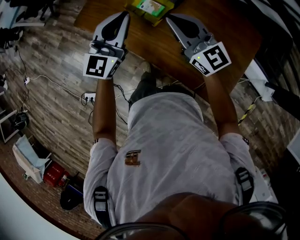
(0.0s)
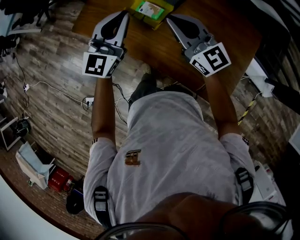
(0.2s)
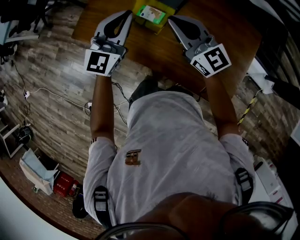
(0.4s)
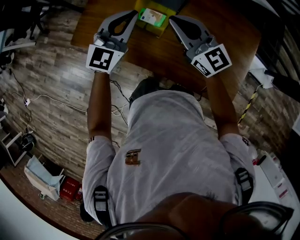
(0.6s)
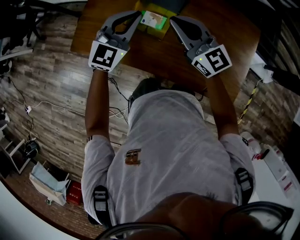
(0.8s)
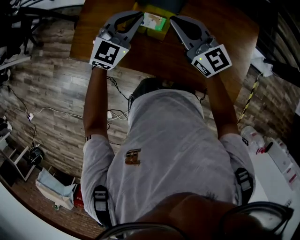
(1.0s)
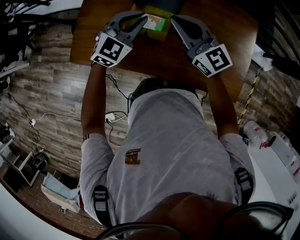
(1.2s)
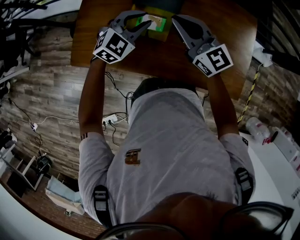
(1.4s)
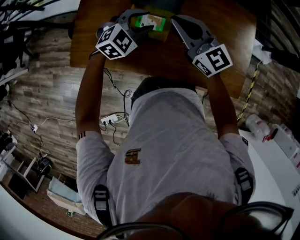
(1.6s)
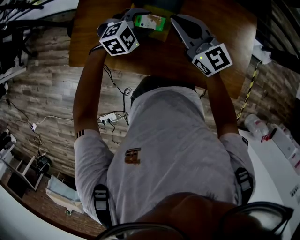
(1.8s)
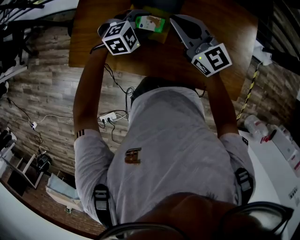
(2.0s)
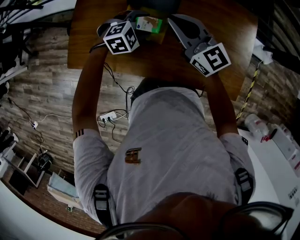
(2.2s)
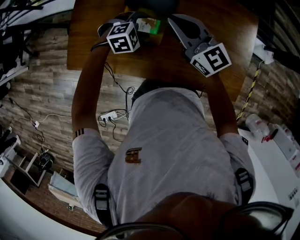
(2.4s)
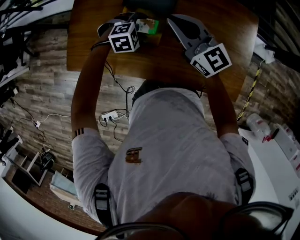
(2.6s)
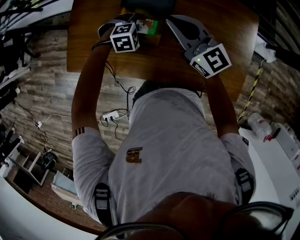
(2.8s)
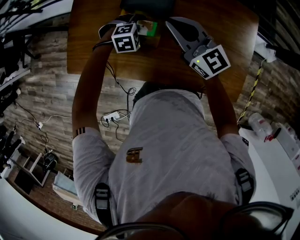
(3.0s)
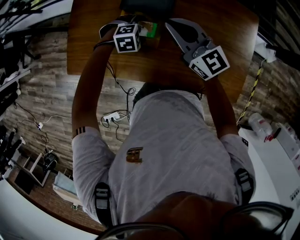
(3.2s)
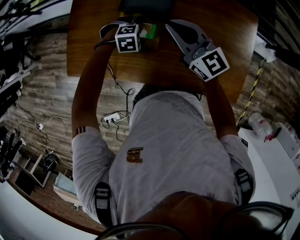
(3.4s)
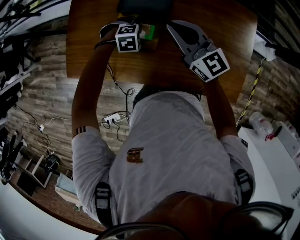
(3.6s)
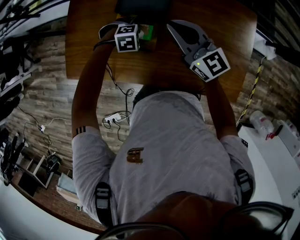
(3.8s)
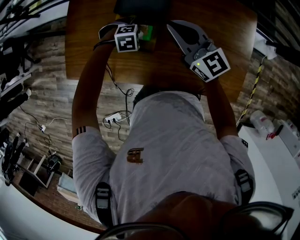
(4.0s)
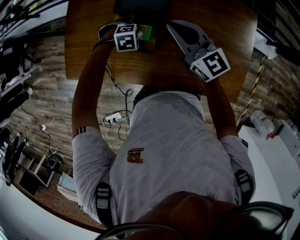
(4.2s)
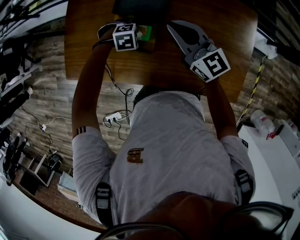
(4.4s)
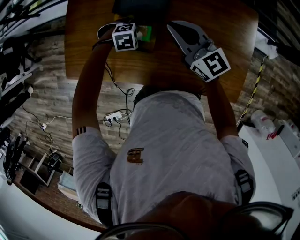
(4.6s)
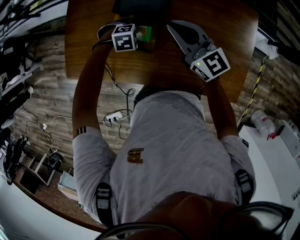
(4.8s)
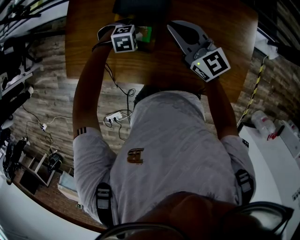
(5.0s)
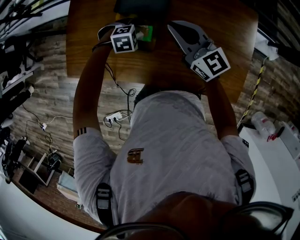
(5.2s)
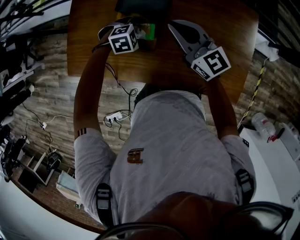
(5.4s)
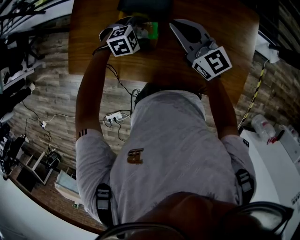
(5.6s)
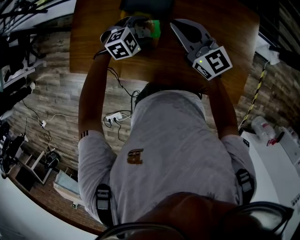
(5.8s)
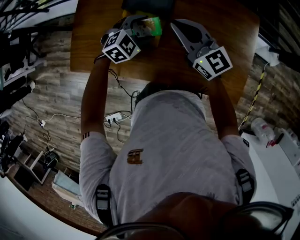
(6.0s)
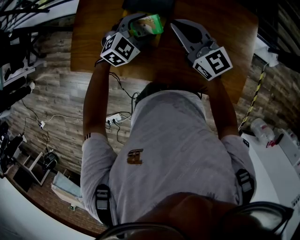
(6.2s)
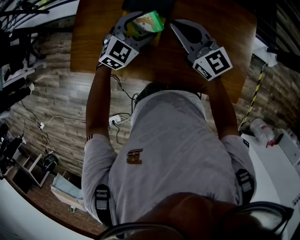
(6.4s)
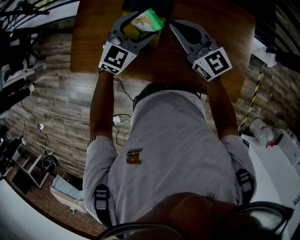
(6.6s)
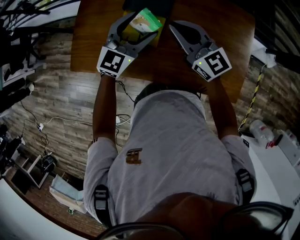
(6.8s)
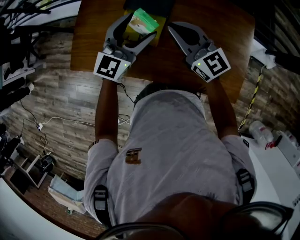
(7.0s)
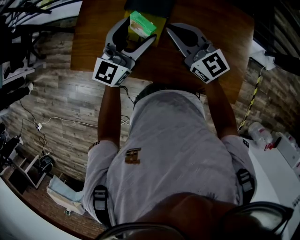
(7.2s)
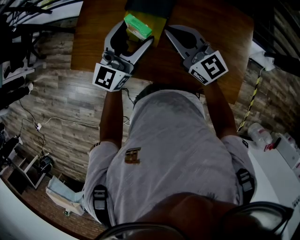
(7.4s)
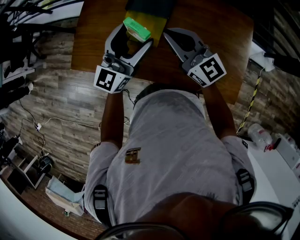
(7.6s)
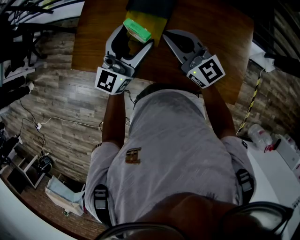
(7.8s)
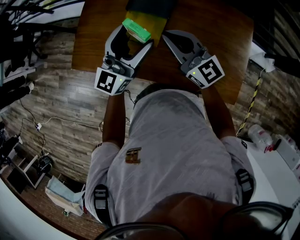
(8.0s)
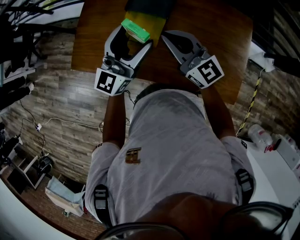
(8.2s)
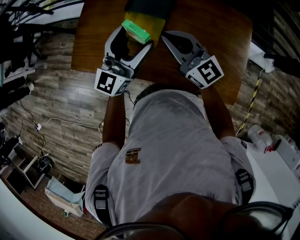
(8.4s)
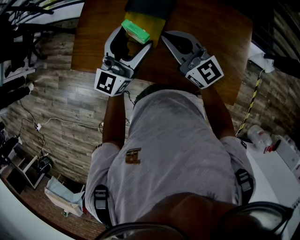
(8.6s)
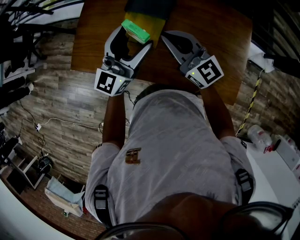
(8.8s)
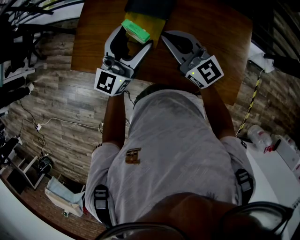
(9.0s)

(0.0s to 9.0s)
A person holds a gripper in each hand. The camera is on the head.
0.0s - 1.6s: The left gripper ends up about 25 cm from where it was, points its fingers about 40 degrees further downward, and opens its fingers, while the right gripper moves about 20 cm, and turns by roughly 20 degrees.
1.6s - 3.0s: The right gripper shifts some 5 cm forward; the left gripper shifts roughly 15 cm downward, rotates some 30 degrees, and opens.
3.0s - 4.4s: The right gripper ends up some 5 cm from where it was.
4.4s - 6.0s: The left gripper travels upward by roughly 10 cm, and rotates about 40 degrees. Meanwhile the right gripper moves roughly 5 cm.
6.0s - 7.6s: The right gripper moves backward, about 10 cm. The left gripper travels upward and backward by about 20 cm, and tilts its fingers some 60 degrees upward.
7.6s - 9.0s: There are only small adjustments of the grippers.

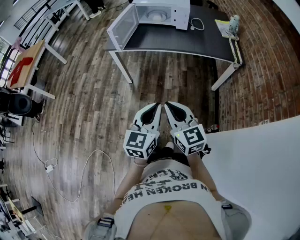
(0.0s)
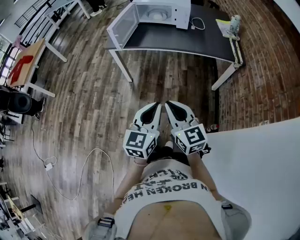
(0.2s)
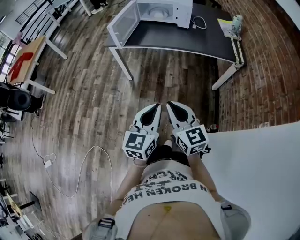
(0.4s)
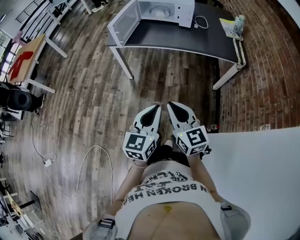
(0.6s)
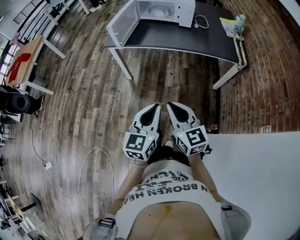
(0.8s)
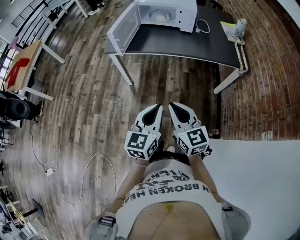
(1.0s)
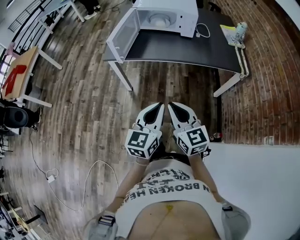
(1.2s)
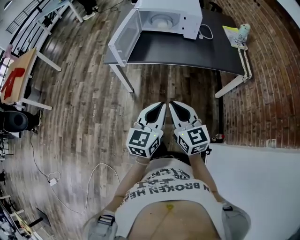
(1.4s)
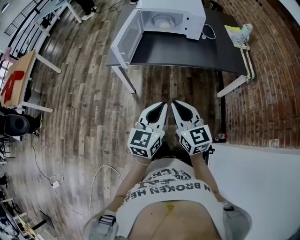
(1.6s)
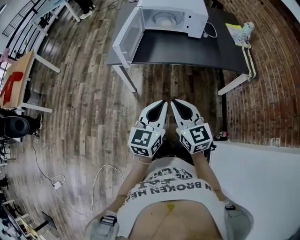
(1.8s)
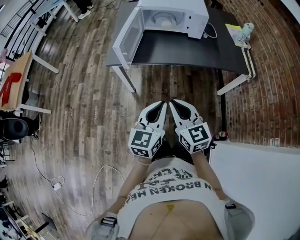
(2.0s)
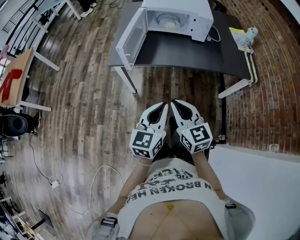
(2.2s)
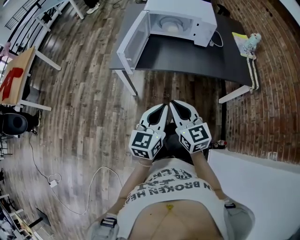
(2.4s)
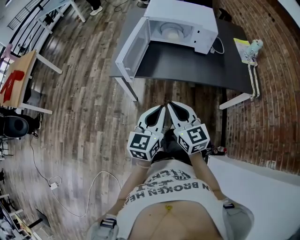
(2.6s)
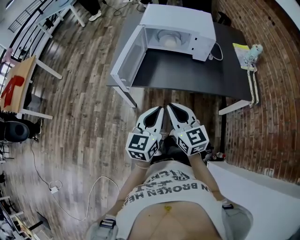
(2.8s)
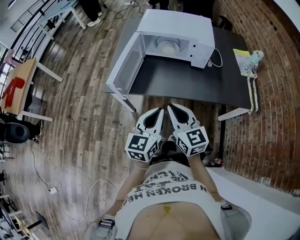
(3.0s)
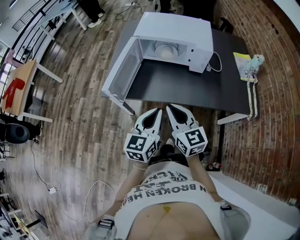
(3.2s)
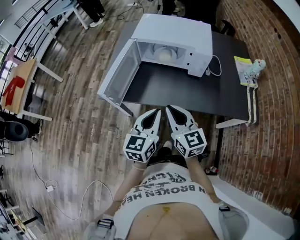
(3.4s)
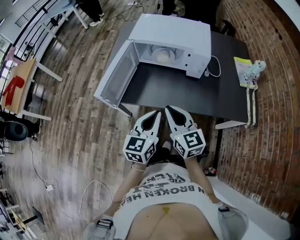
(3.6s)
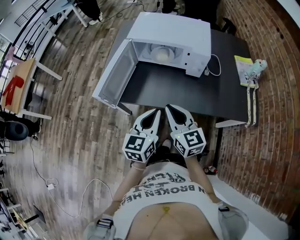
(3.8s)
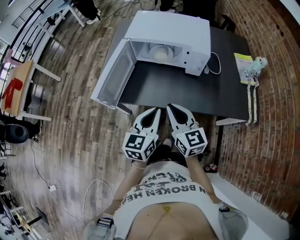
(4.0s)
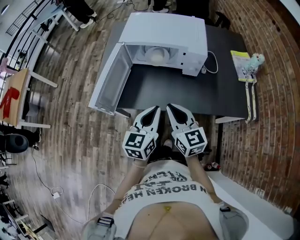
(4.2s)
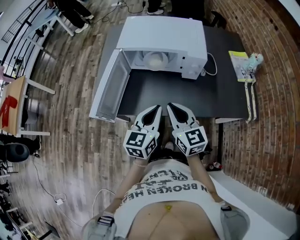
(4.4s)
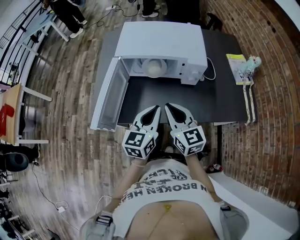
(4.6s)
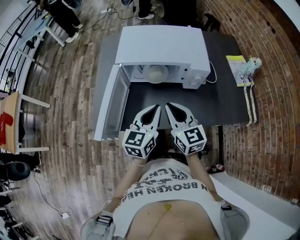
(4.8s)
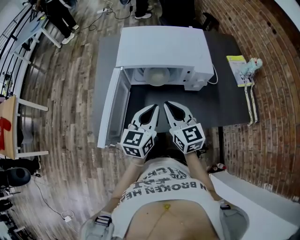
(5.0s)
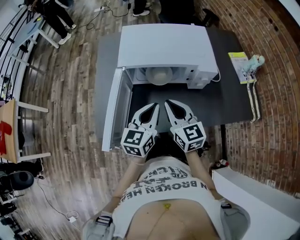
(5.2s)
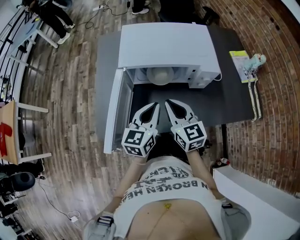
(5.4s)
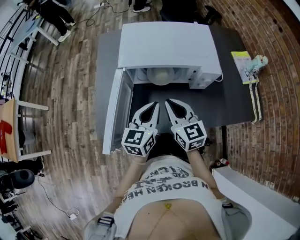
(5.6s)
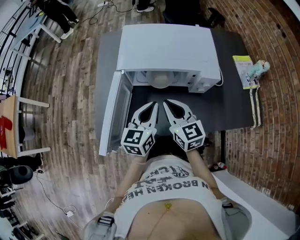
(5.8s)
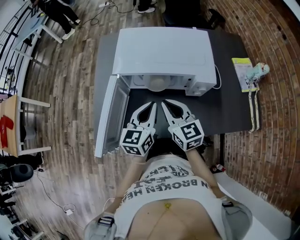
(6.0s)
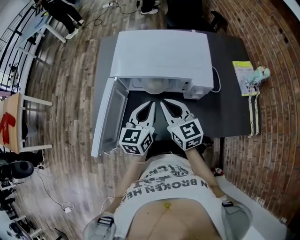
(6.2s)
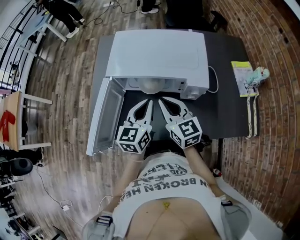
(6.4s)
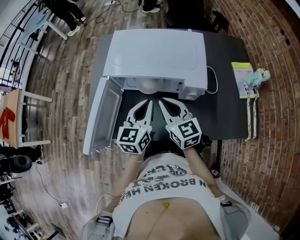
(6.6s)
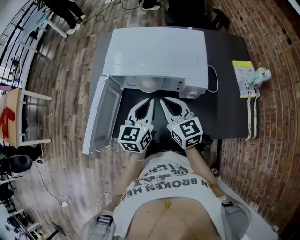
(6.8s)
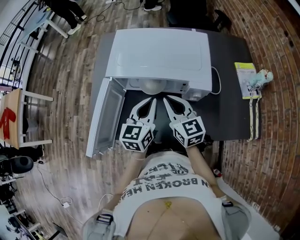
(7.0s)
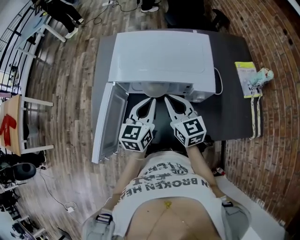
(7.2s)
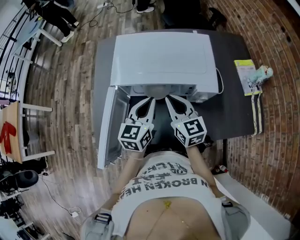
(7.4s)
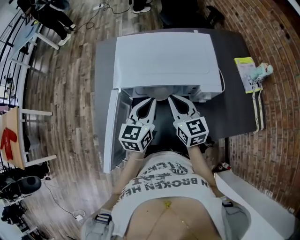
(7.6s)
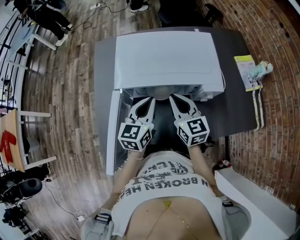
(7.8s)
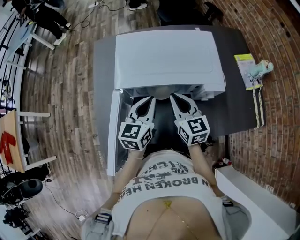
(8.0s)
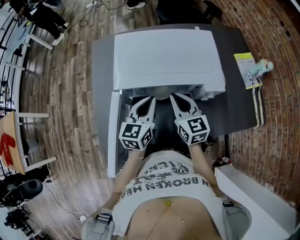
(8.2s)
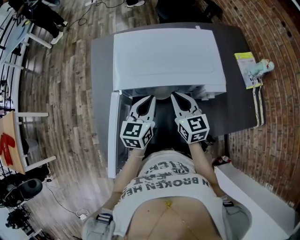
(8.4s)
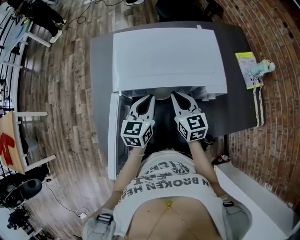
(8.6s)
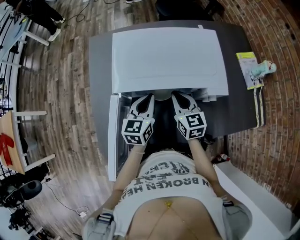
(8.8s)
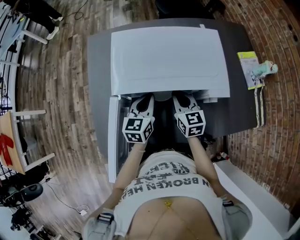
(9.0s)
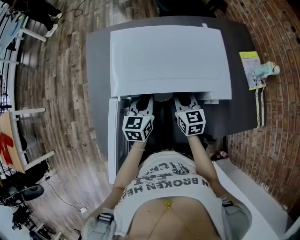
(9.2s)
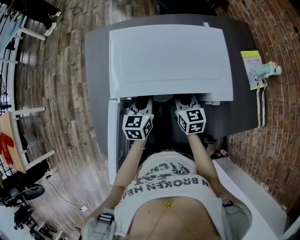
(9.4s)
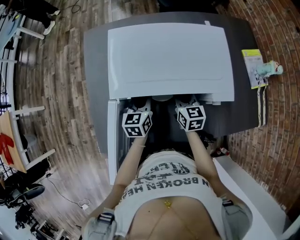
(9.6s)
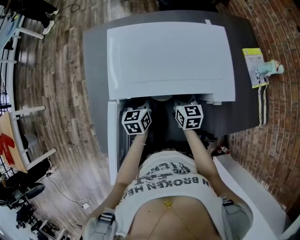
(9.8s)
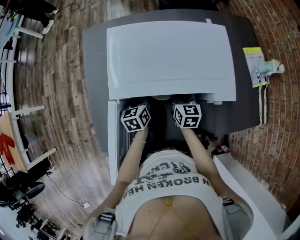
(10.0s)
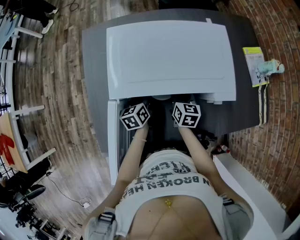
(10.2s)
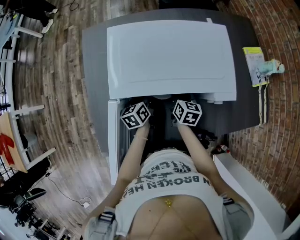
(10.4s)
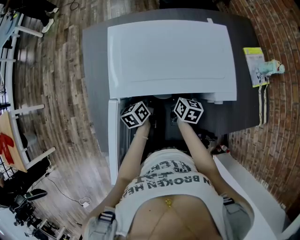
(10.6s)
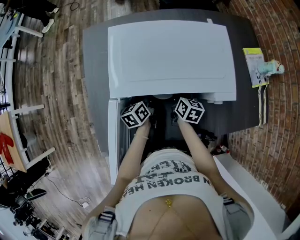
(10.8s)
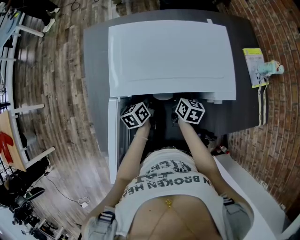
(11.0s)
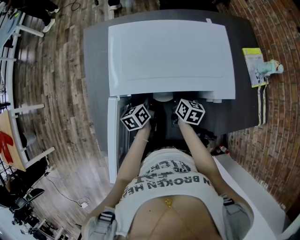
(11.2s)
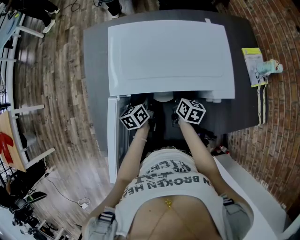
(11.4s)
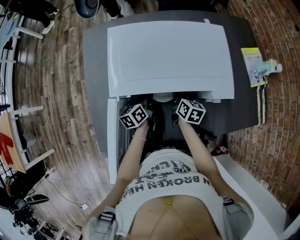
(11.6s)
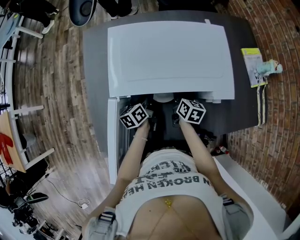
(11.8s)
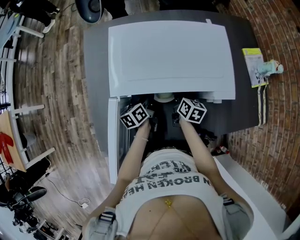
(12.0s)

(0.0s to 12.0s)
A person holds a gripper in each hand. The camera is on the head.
0.0s - 1.6s: Both grippers travel together forward, roughly 20 cm.
1.6s - 3.0s: Both grippers move forward, about 20 cm.
3.0s - 4.4s: The two grippers go approximately 15 cm forward and to the right.
4.4s - 6.0s: The two grippers go roughly 15 cm forward.
6.0s - 7.6s: The grippers both shift forward by about 5 cm.
7.6s - 9.0s: The two grippers go about 10 cm downward and forward.
9.0s - 10.4s: Both grippers travel together downward, some 10 cm. The right gripper changes its angle by approximately 30 degrees, and opens, while the left gripper turns by approximately 30 degrees, and opens.
10.4s - 12.0s: The grippers move only a little.

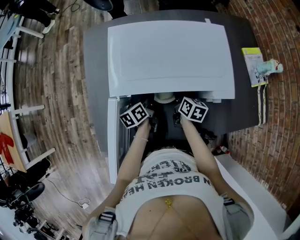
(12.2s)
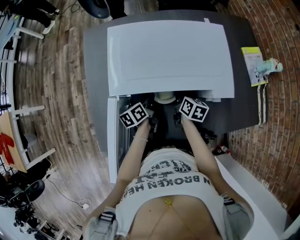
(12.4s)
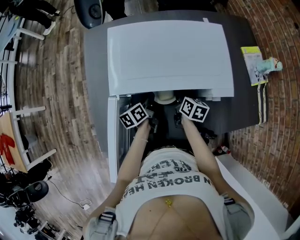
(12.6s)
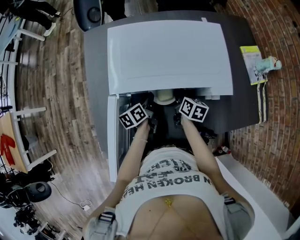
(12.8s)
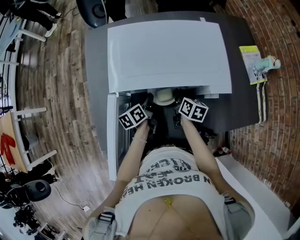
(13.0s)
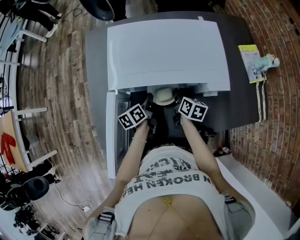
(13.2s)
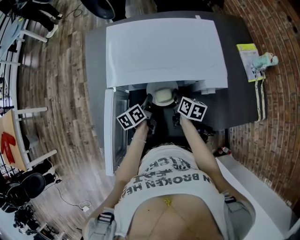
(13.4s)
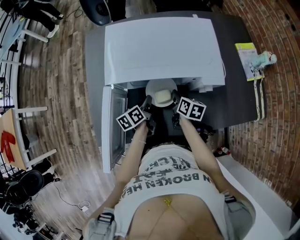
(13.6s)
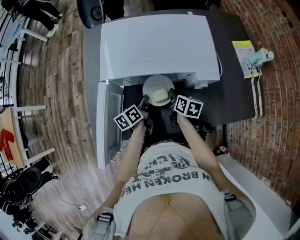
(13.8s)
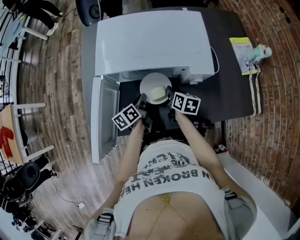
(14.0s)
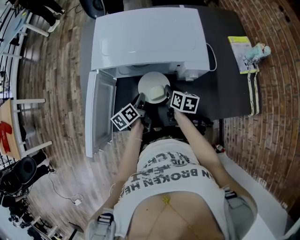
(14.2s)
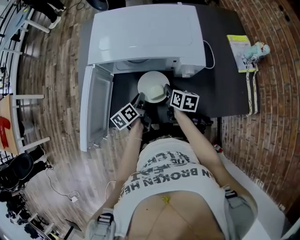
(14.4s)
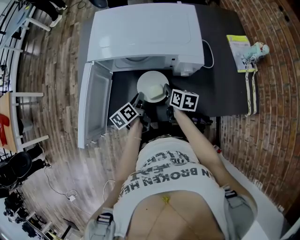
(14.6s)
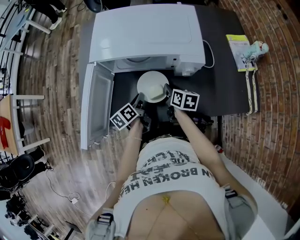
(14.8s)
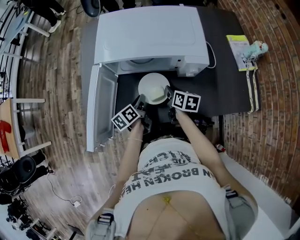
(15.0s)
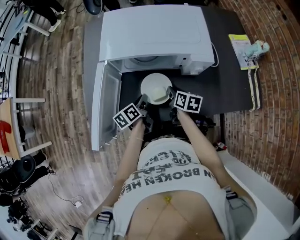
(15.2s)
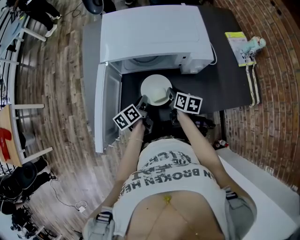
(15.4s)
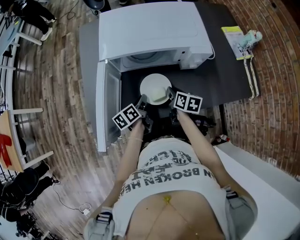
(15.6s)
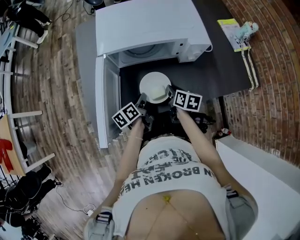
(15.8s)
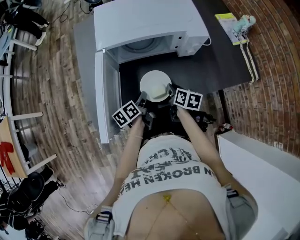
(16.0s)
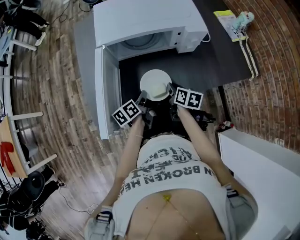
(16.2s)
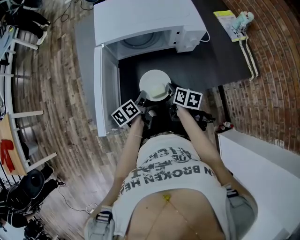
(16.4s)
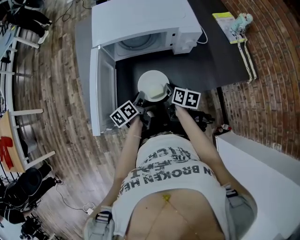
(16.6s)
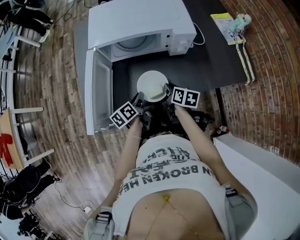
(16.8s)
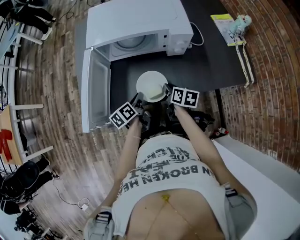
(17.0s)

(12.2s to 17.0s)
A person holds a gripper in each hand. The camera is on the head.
12.2s - 13.8s: The grippers both shift backward by approximately 5 cm.
13.8s - 15.4s: The grippers both shift backward by about 10 cm.
15.4s - 17.0s: Both grippers travel together backward, some 10 cm.
